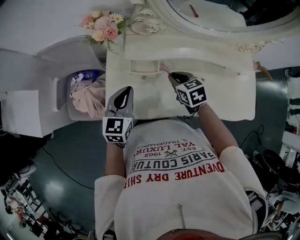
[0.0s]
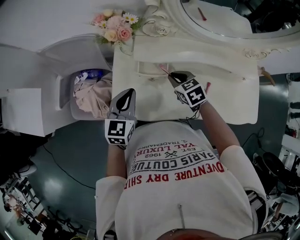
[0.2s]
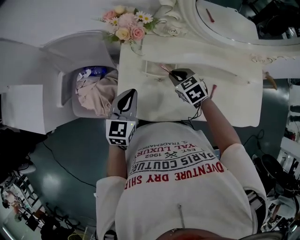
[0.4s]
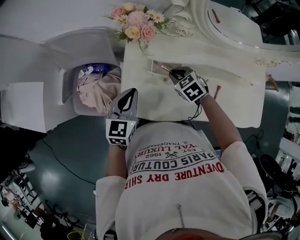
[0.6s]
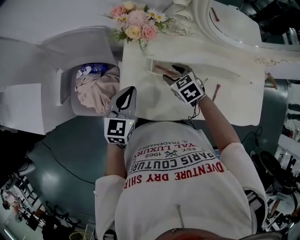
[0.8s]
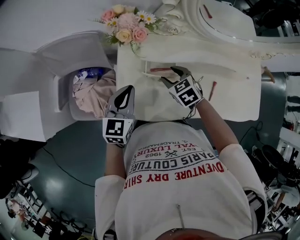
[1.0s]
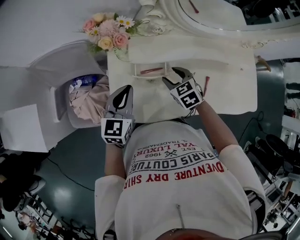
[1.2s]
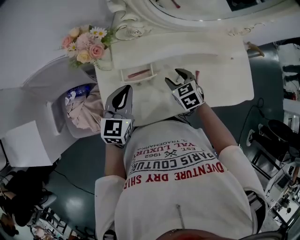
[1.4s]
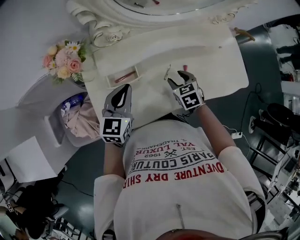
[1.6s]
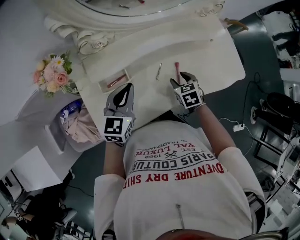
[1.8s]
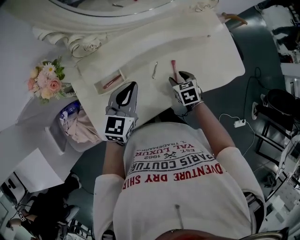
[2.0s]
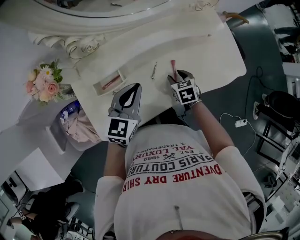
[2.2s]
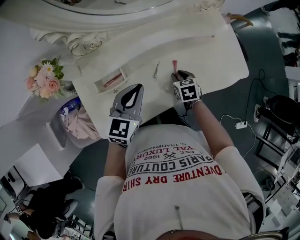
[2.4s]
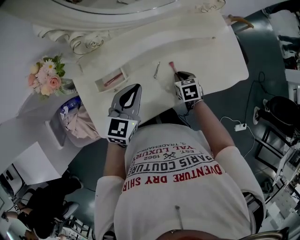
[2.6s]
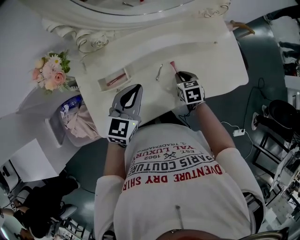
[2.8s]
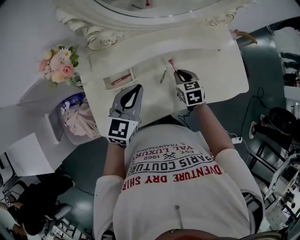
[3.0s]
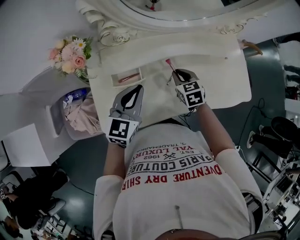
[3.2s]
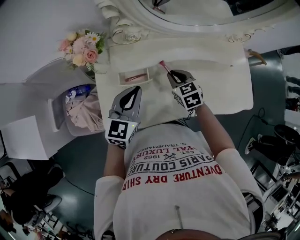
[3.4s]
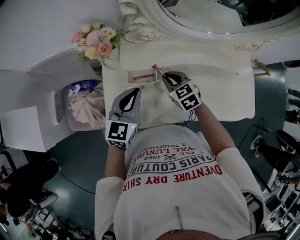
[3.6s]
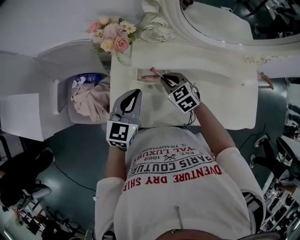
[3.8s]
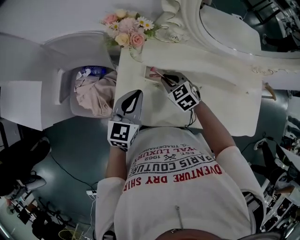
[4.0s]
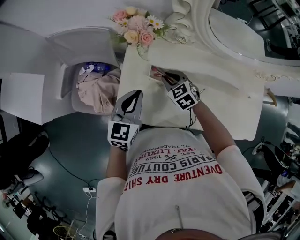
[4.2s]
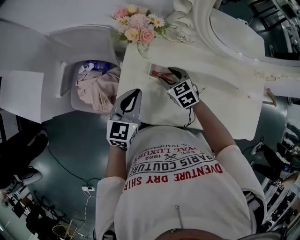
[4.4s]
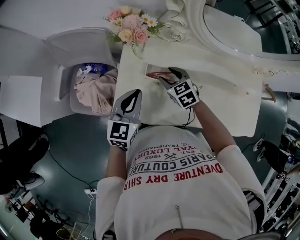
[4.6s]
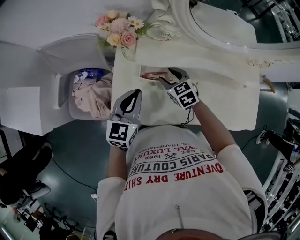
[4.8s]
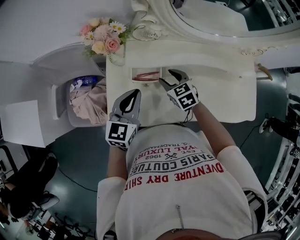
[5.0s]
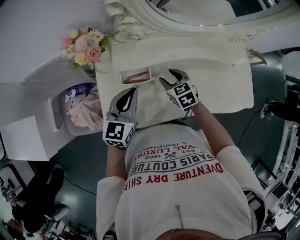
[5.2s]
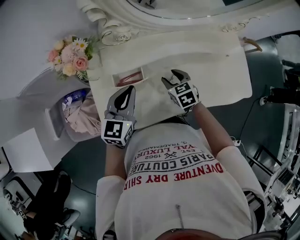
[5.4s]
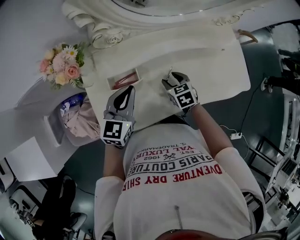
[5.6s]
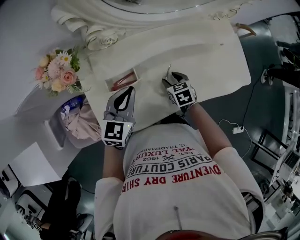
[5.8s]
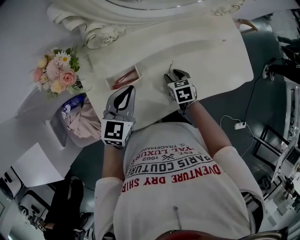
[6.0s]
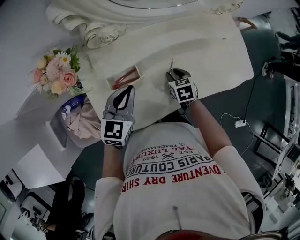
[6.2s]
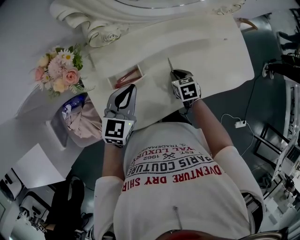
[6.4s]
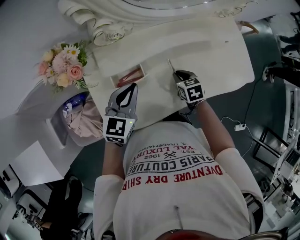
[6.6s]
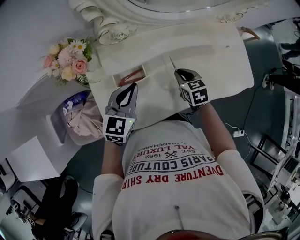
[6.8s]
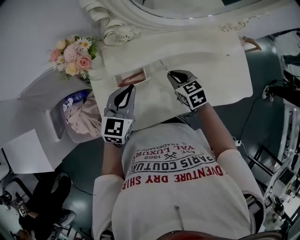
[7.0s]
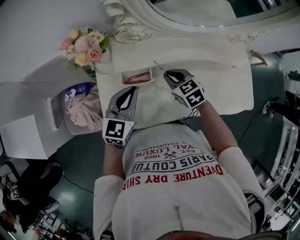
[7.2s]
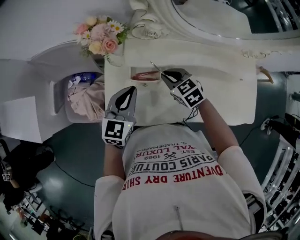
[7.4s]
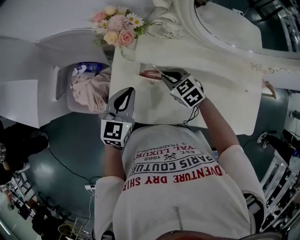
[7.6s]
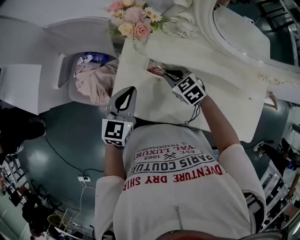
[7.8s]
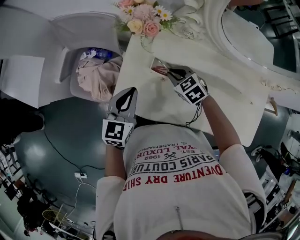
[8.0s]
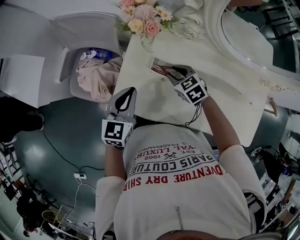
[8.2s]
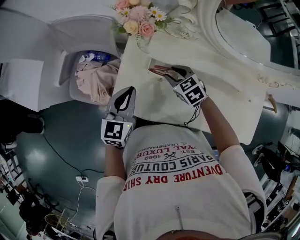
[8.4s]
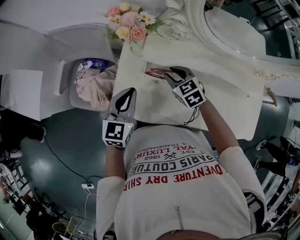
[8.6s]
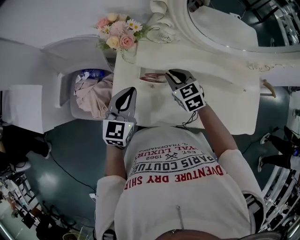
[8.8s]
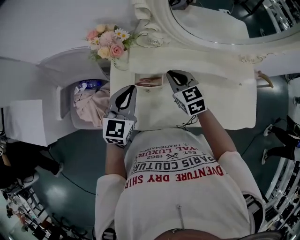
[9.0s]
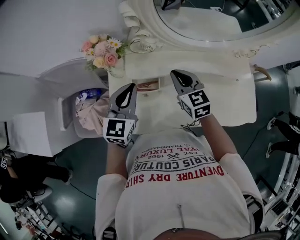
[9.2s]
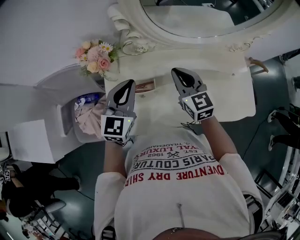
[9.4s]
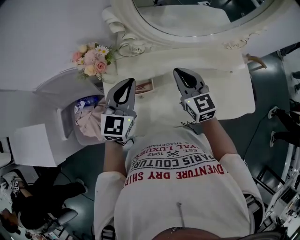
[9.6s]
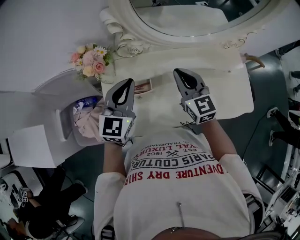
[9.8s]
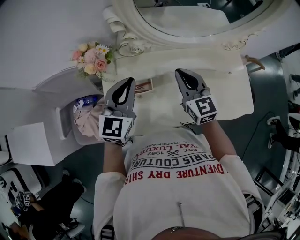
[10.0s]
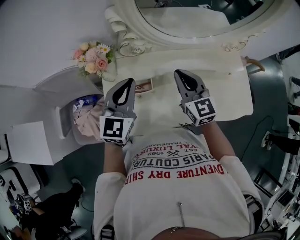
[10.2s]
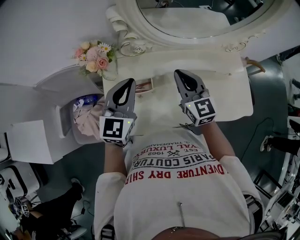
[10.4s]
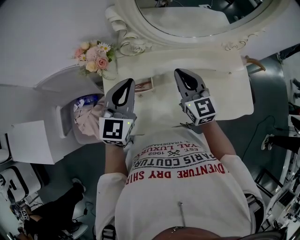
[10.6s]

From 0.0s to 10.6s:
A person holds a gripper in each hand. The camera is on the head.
From 0.0s to 1.6s: The left gripper moves approximately 10 cm, and swivels roughly 20 degrees. Meanwhile the right gripper ends up roughly 10 cm from where it was, rotates some 20 degrees, and opens up.
From 1.6s to 3.0s: The left gripper moves to the right, approximately 5 cm; the right gripper closes up.
From 3.0s to 4.6s: The left gripper ends up roughly 15 cm from where it was, and swivels about 30 degrees; the right gripper changes place by roughly 25 cm, rotates roughly 40 degrees, and opens up.
From 4.6s to 6.0s: The right gripper shifts by approximately 20 cm, and turns by some 50 degrees. The left gripper moves about 15 cm, and rotates about 30 degrees.
From 6.0s to 7.6s: The left gripper changes place by approximately 10 cm, and swivels about 30 degrees. Meanwhile the right gripper moves roughly 20 cm, swivels some 60 degrees, and closes up.
From 7.6s to 9.0s: The left gripper shifts by about 5 cm, while the right gripper heads upward and to the right, covering roughly 10 cm, and swivels roughly 30 degrees.
From 9.0s to 10.6s: The left gripper is displaced upward by approximately 10 cm. The right gripper travels upward and to the right by roughly 15 cm, and changes its angle by about 30 degrees.

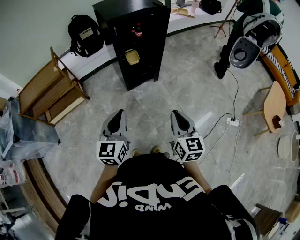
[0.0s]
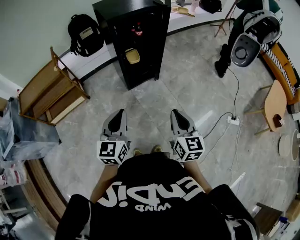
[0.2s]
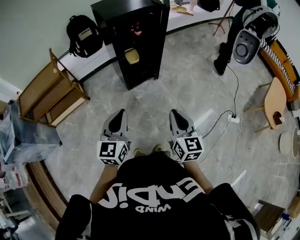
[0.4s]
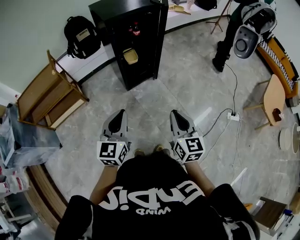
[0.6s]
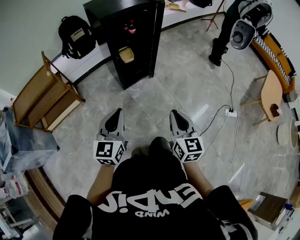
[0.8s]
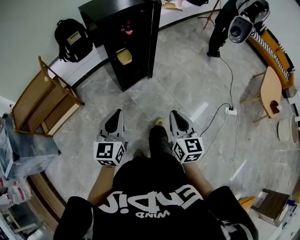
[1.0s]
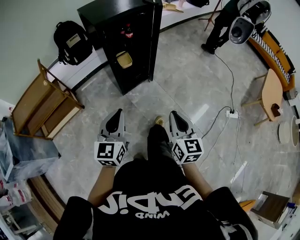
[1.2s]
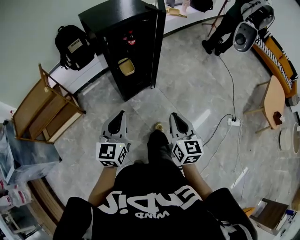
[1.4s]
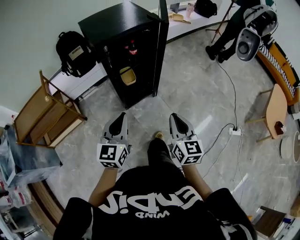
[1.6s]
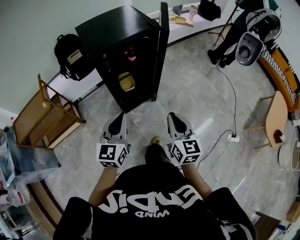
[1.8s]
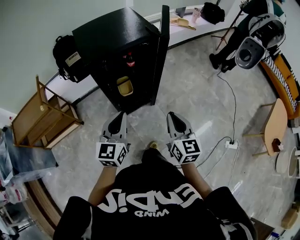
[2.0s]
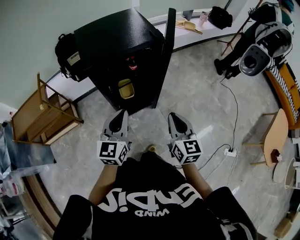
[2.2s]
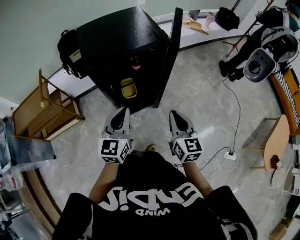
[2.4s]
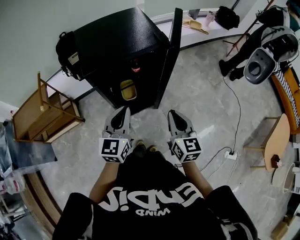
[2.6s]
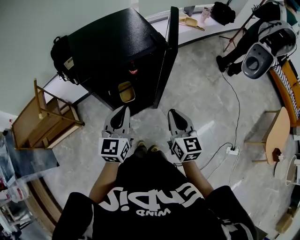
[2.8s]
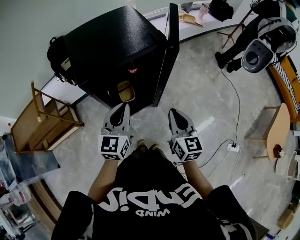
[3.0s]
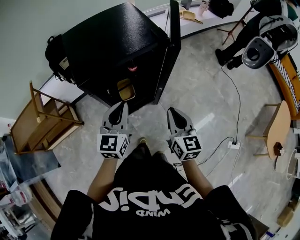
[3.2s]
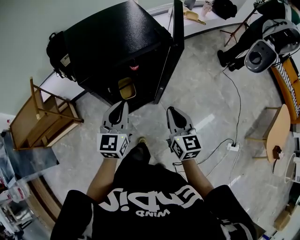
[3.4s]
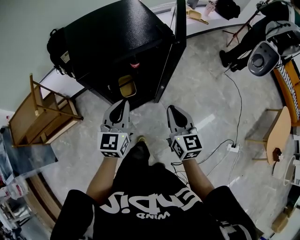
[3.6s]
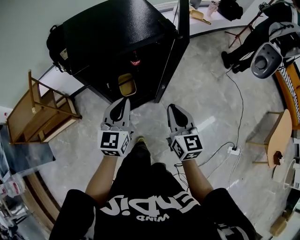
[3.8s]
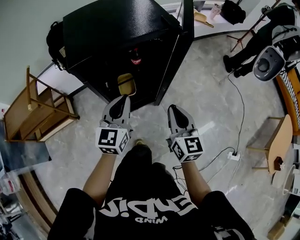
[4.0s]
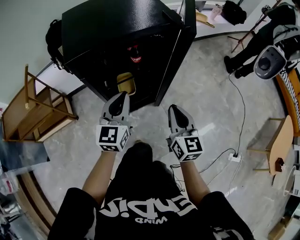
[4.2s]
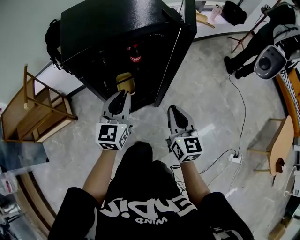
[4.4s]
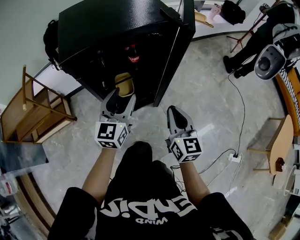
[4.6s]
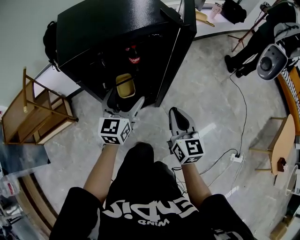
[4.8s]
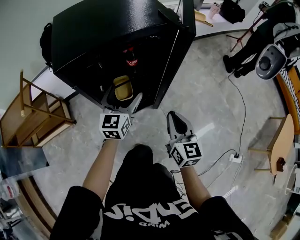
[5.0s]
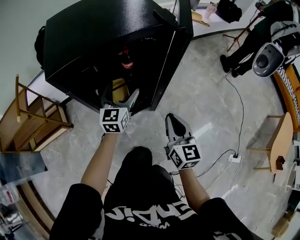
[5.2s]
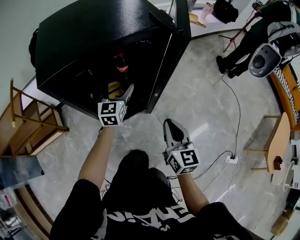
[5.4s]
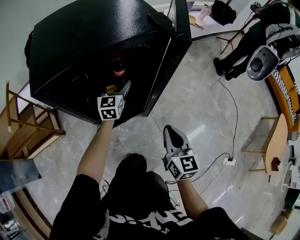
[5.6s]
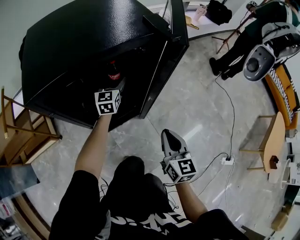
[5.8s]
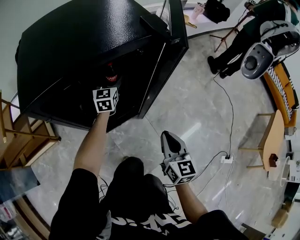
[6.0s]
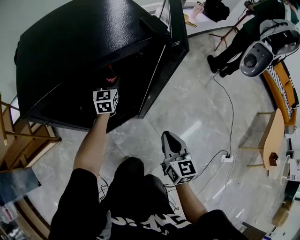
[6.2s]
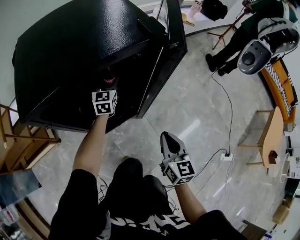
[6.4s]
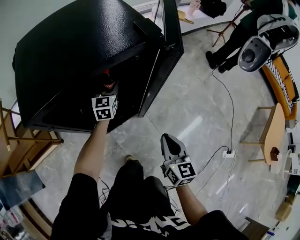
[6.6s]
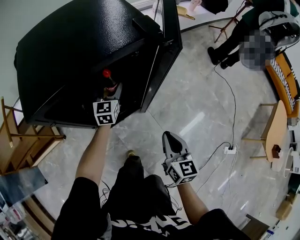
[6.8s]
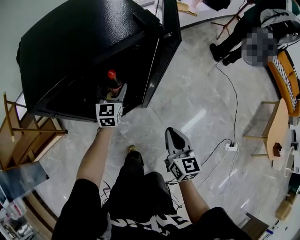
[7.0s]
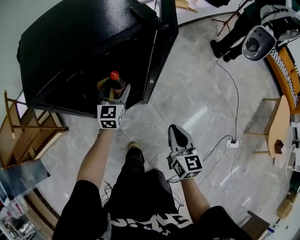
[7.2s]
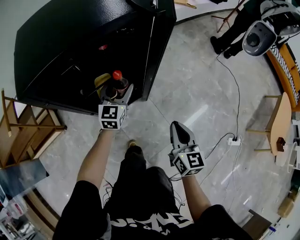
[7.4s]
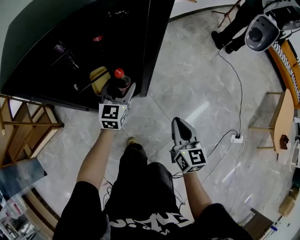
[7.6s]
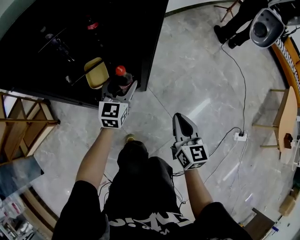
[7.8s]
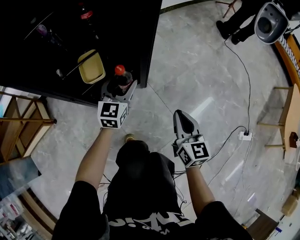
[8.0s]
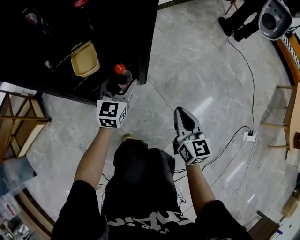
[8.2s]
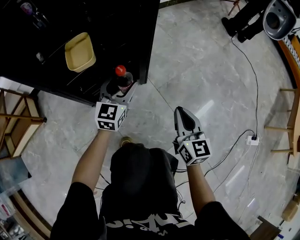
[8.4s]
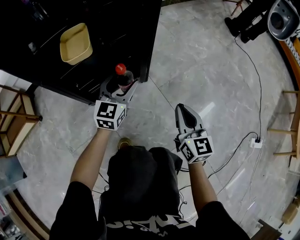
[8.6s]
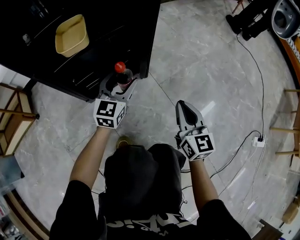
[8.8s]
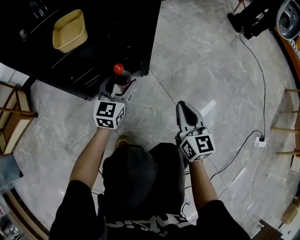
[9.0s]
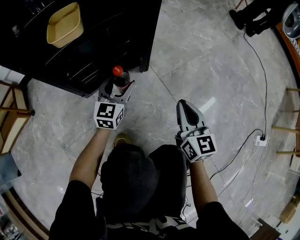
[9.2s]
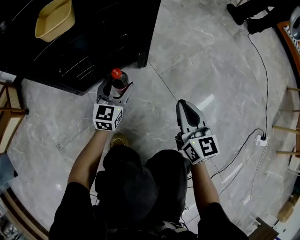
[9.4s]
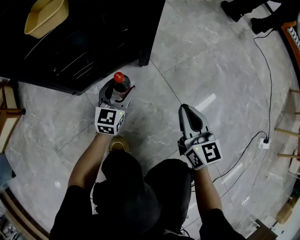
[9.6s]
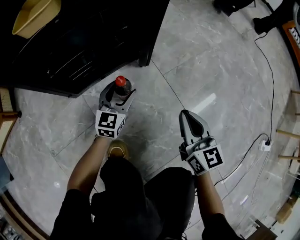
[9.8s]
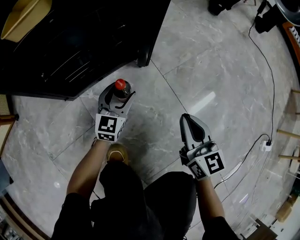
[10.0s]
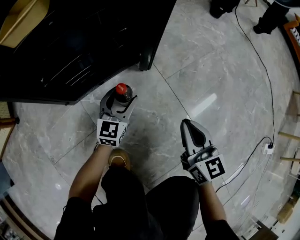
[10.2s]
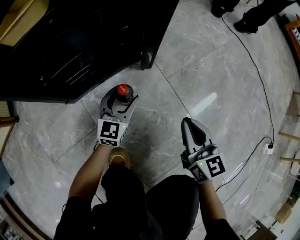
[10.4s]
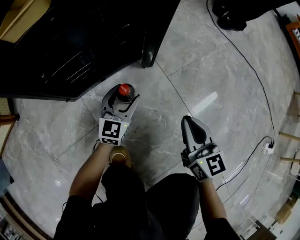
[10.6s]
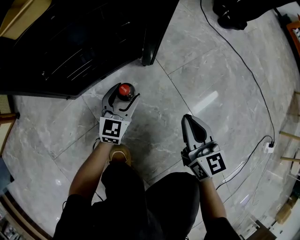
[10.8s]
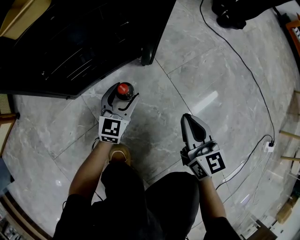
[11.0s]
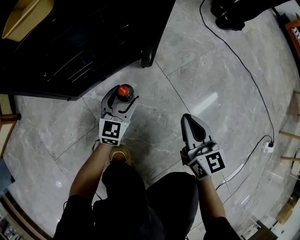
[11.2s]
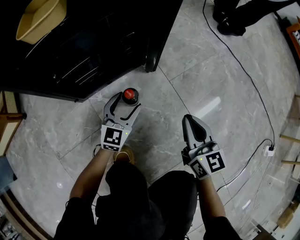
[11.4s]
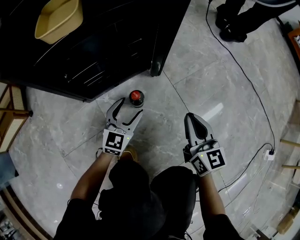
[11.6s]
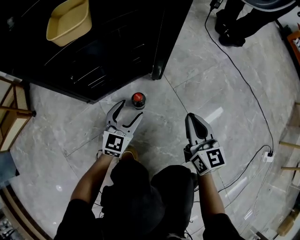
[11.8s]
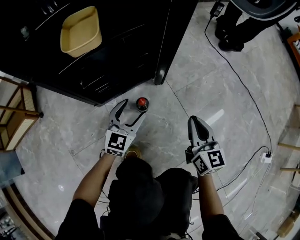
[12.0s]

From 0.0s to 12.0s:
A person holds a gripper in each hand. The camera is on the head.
From 0.0s to 1.6s: The grippers both shift forward by roughly 20 cm.
From 1.6s to 3.0s: The grippers both shift forward by approximately 25 cm.
From 3.0s to 4.4s: Both grippers move downward, roughly 10 cm.
From 4.4s to 6.0s: The left gripper is displaced forward and downward by approximately 30 cm, and opens up. The right gripper is displaced downward by some 10 cm.
From 6.0s to 7.6s: The left gripper travels backward and to the right by approximately 20 cm, while the right gripper moves backward, to the right and downward, some 10 cm.
From 7.6s to 9.0s: Both grippers move downward, roughly 40 cm.
From 9.0s to 10.4s: The two grippers go about 15 cm downward.
From 10.4s to 12.0s: Both grippers travel together upward, some 10 cm.

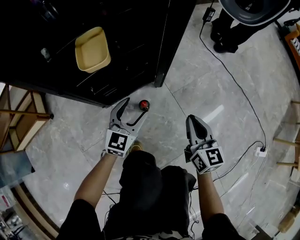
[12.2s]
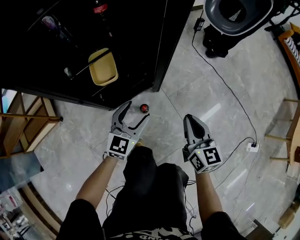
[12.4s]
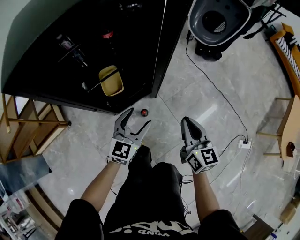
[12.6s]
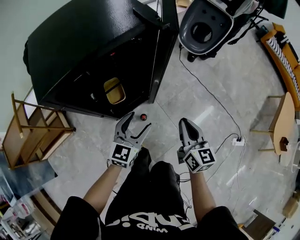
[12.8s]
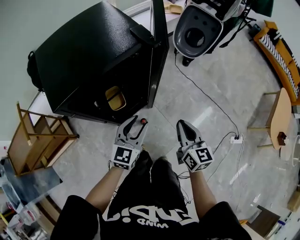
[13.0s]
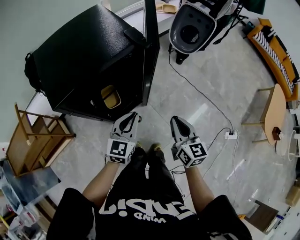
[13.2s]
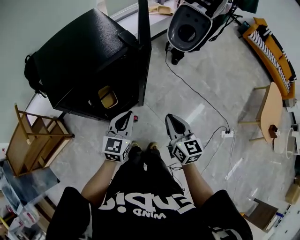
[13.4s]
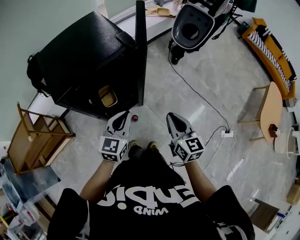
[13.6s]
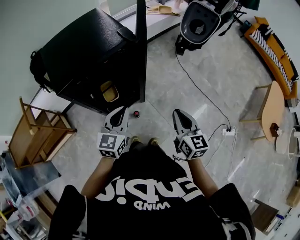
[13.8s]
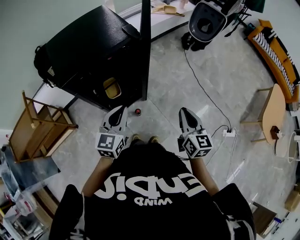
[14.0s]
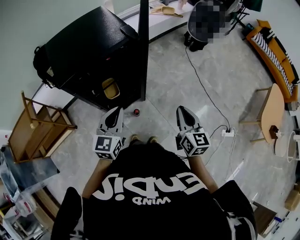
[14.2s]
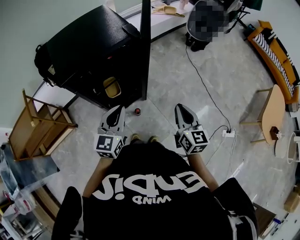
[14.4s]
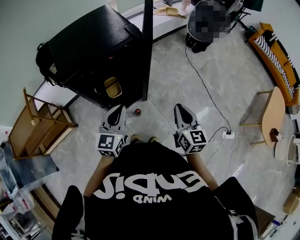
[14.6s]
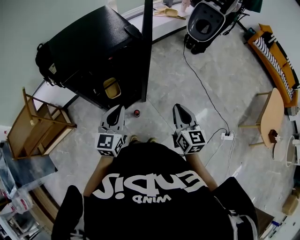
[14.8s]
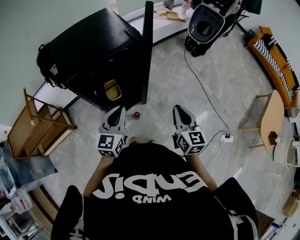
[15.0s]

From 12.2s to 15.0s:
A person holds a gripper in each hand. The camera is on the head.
From 12.2s to 13.6s: Both grippers move upward, about 50 cm. The left gripper closes its fingers.
From 13.6s to 15.0s: The left gripper ends up some 5 cm from where it was.
